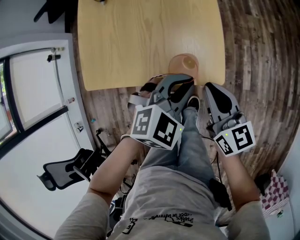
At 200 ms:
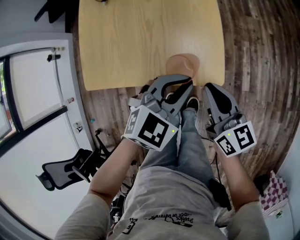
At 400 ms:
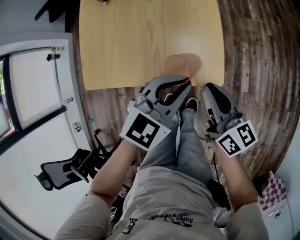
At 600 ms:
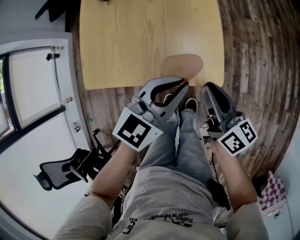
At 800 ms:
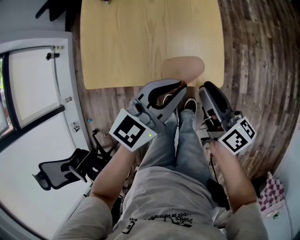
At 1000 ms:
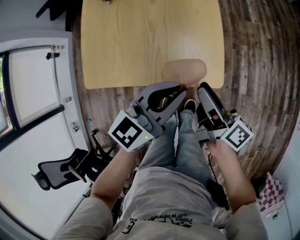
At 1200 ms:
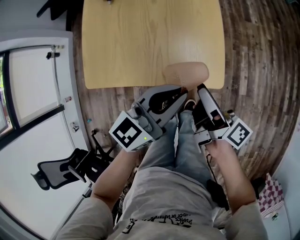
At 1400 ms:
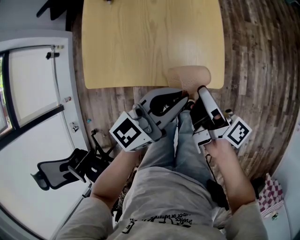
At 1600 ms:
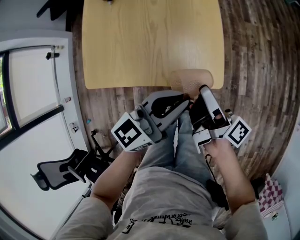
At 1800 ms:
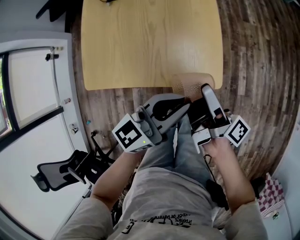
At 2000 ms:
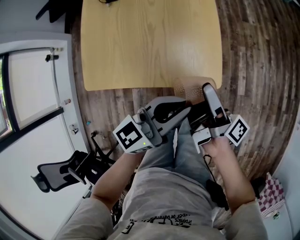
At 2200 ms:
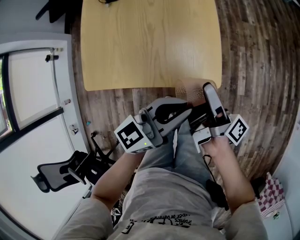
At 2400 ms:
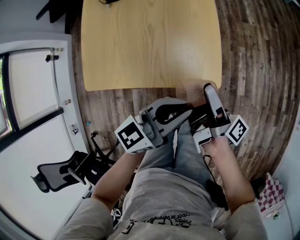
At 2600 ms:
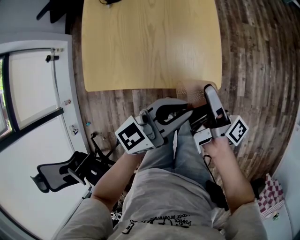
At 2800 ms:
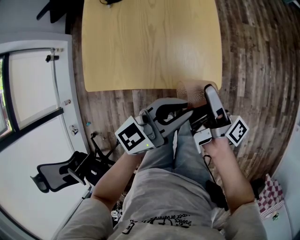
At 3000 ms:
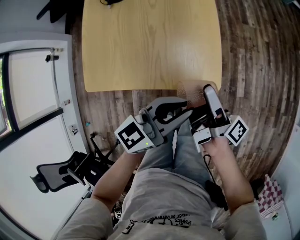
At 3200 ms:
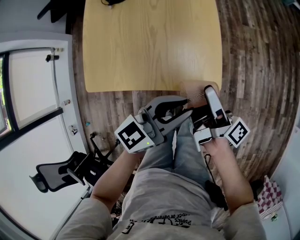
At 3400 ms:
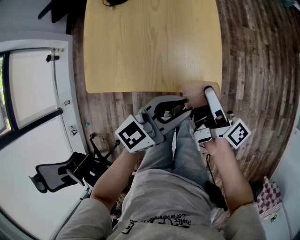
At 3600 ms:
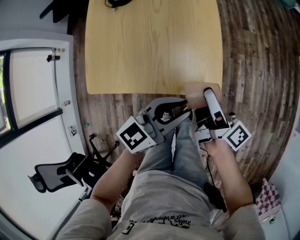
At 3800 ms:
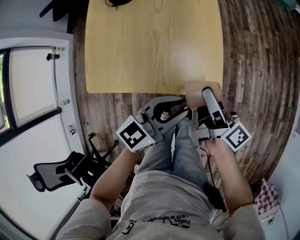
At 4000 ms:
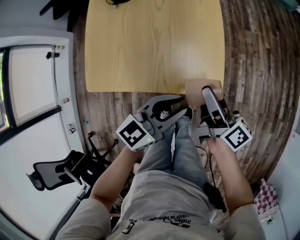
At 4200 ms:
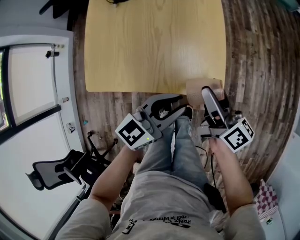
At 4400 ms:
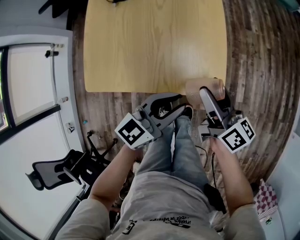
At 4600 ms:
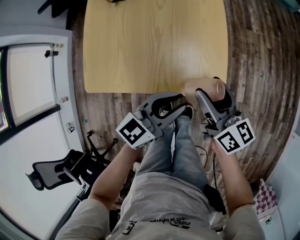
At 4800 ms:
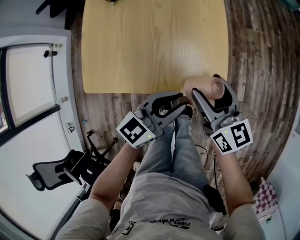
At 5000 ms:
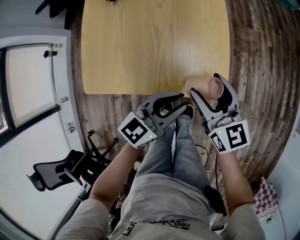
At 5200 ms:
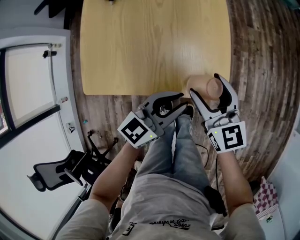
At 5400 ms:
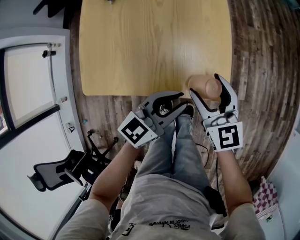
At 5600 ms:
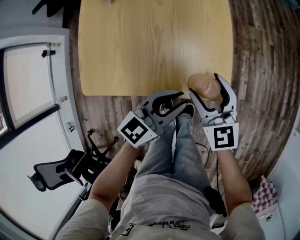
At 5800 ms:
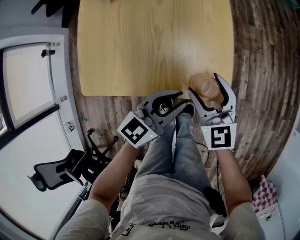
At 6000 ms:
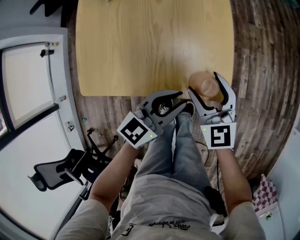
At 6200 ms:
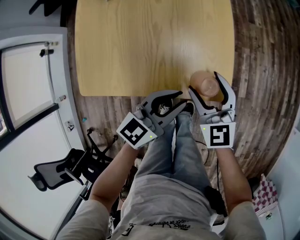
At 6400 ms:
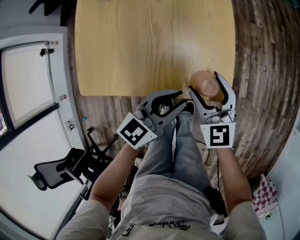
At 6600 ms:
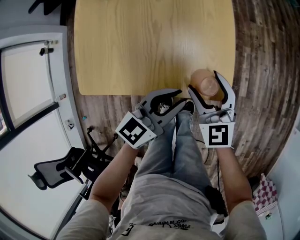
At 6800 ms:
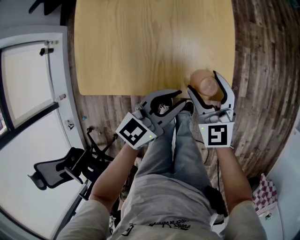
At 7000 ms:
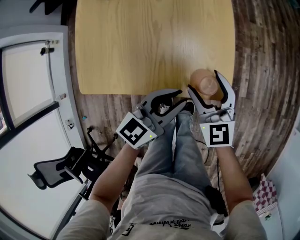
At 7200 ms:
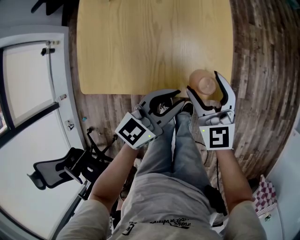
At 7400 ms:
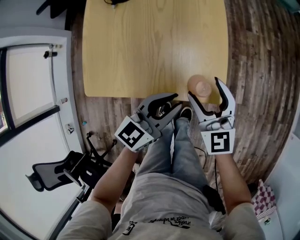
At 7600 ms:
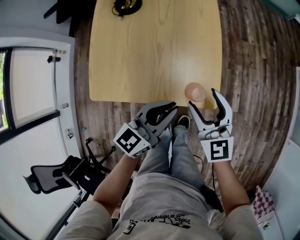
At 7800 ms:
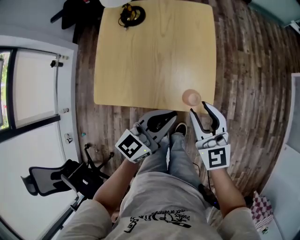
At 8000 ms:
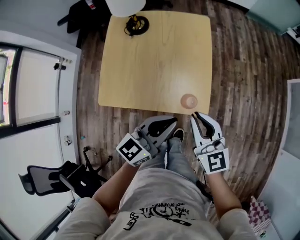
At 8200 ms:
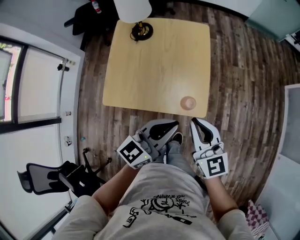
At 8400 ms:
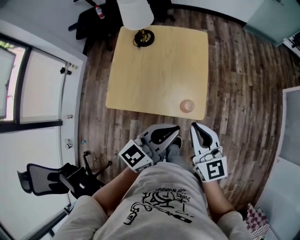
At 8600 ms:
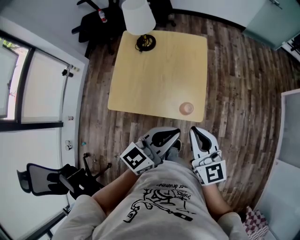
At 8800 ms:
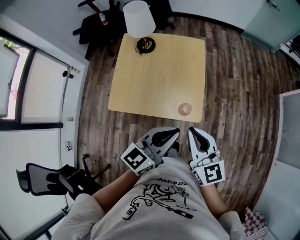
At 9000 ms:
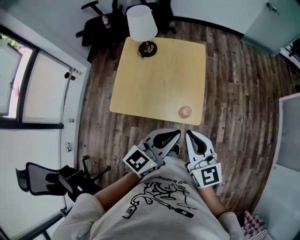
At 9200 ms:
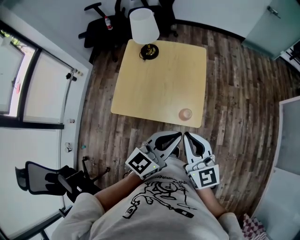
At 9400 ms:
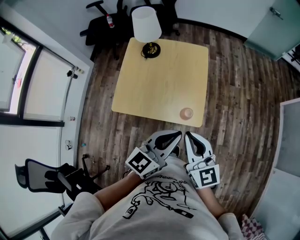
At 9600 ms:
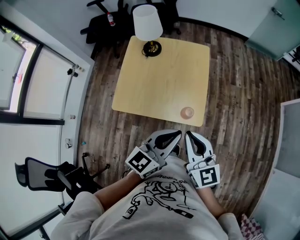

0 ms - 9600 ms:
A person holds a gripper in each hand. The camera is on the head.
0 ms - 1600 ms: The right gripper rotates around the line of its fingers by about 60 degrees, clockwise from behind, and opens its fingers. Meanwhile the left gripper is displaced upward by some 5 cm, and points its fingers some 40 degrees further upward.
1600 ms - 3200 ms: There are only small adjustments of the grippers.
3200 ms - 4800 ms: The right gripper twists some 60 degrees counterclockwise, seen from behind. Meanwhile the left gripper is displaced downward by approximately 5 cm.
4800 ms - 6400 ms: The right gripper goes approximately 5 cm downward, and swivels about 40 degrees.
6400 ms - 8000 ms: Both grippers move upward, some 15 cm. The right gripper closes up.
8000 ms - 9600 ms: The right gripper shifts about 15 cm upward and backward; the left gripper goes about 10 cm upward.

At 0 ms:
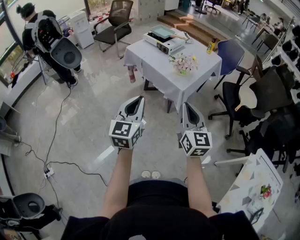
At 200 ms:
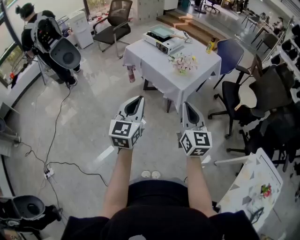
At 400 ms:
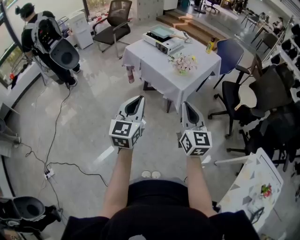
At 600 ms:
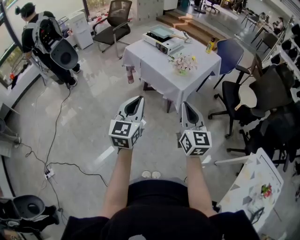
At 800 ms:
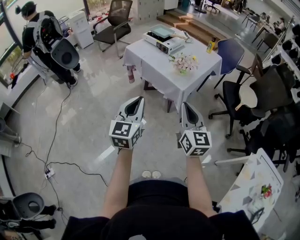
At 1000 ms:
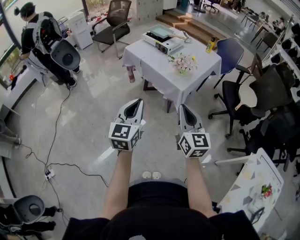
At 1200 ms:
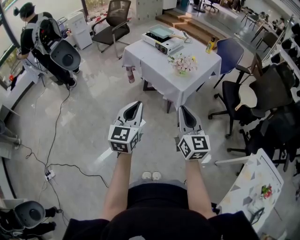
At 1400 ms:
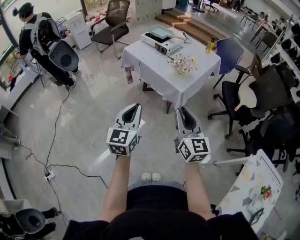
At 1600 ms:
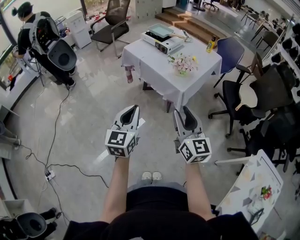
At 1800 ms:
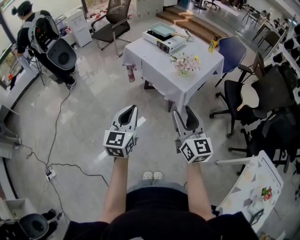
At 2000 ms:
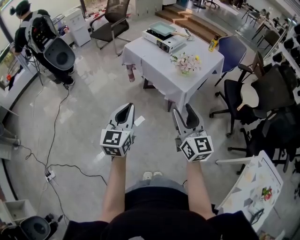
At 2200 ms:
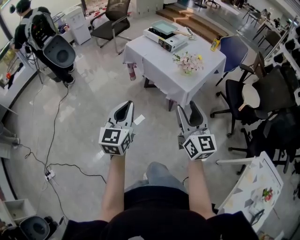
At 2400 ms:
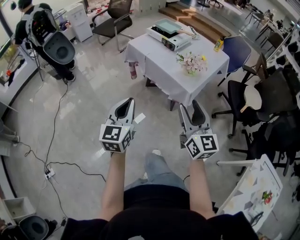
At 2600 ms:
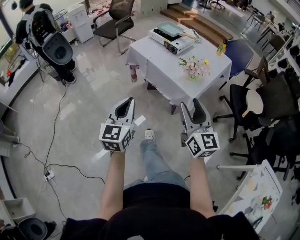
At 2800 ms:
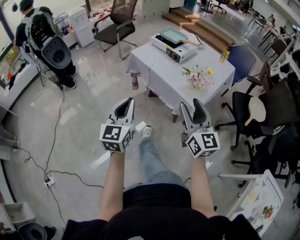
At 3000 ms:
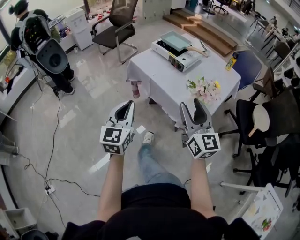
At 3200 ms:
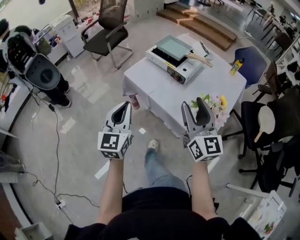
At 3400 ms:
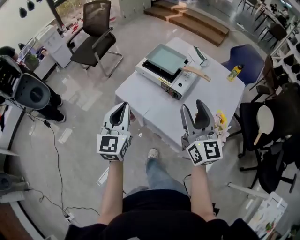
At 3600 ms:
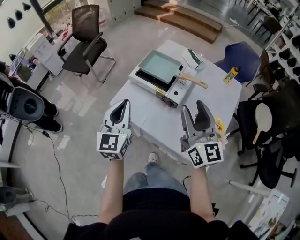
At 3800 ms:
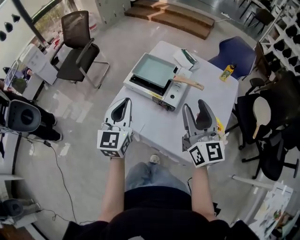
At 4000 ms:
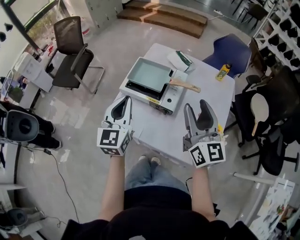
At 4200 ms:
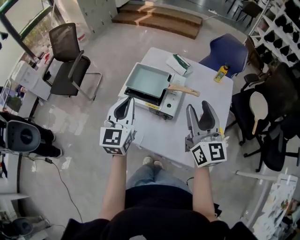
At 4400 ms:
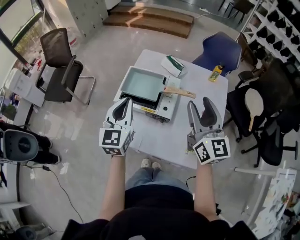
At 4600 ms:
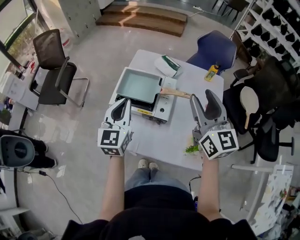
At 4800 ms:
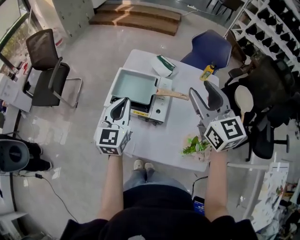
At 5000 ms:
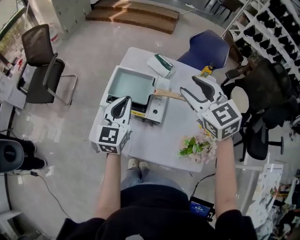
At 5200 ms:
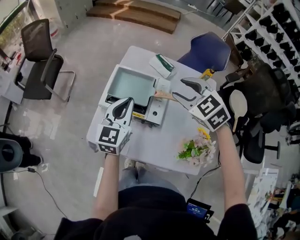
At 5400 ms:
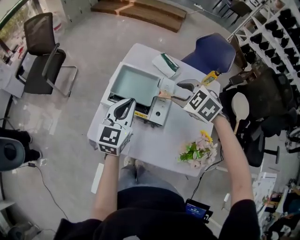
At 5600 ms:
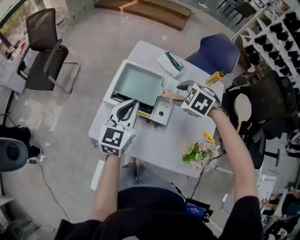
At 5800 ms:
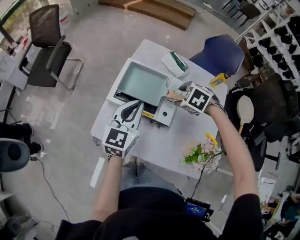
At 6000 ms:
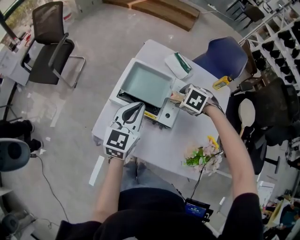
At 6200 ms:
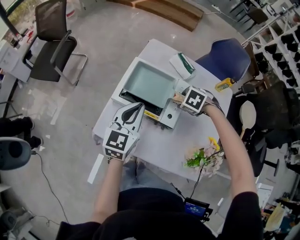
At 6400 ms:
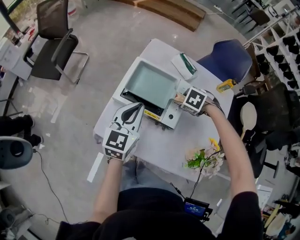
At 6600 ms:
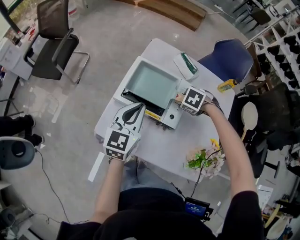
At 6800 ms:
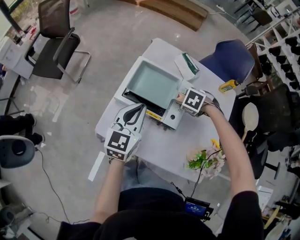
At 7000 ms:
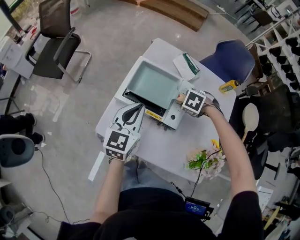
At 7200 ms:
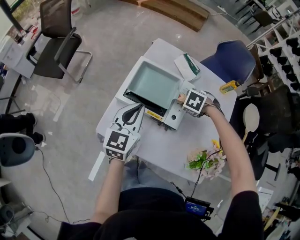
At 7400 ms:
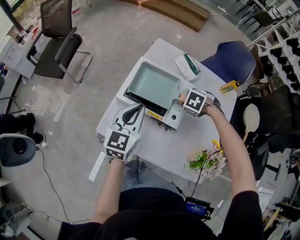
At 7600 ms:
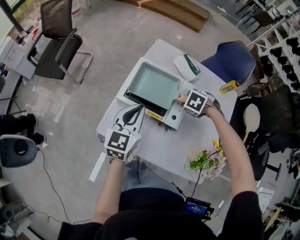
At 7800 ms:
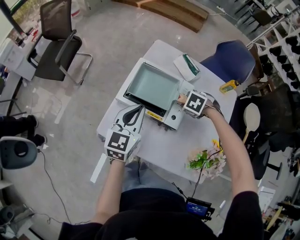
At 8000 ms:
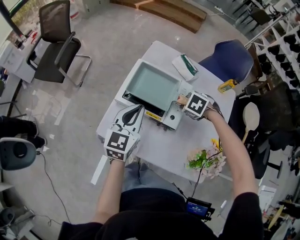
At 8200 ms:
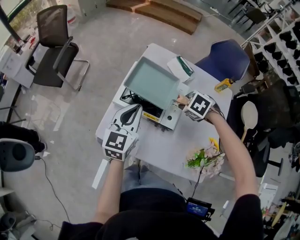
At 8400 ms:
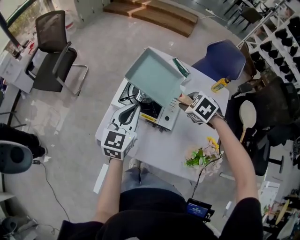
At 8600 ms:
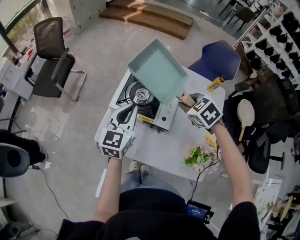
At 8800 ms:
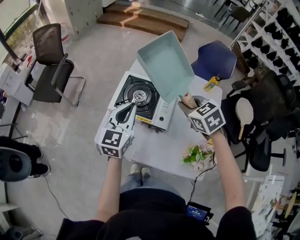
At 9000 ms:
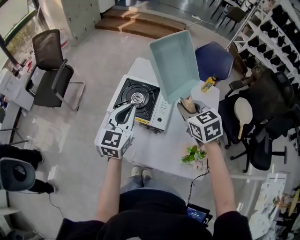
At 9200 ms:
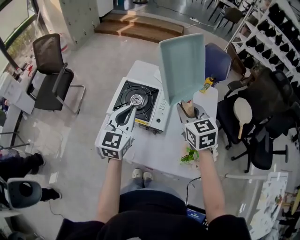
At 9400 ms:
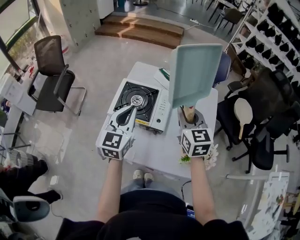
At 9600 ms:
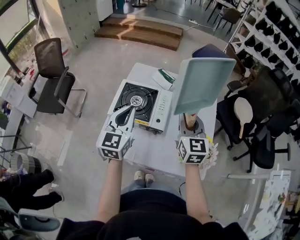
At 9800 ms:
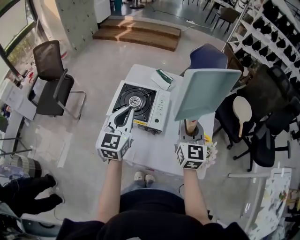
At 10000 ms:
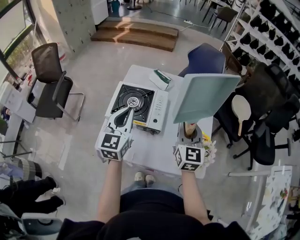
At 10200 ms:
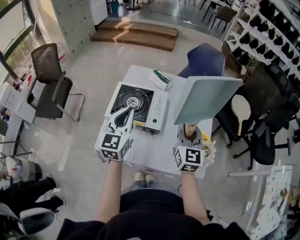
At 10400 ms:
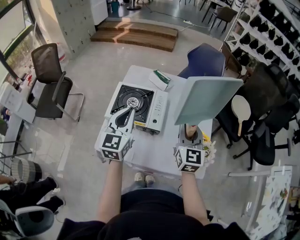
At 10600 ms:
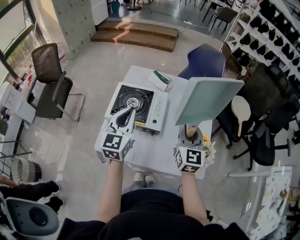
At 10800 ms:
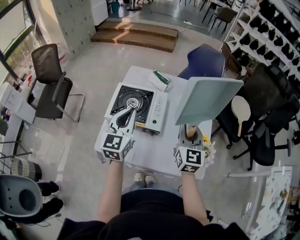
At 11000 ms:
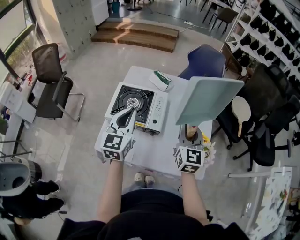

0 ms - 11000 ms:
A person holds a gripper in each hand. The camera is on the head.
0 ms - 1600 ms: The right gripper opens up.
1600 ms - 3200 ms: Both grippers are carried forward, some 40 cm.
3200 ms - 4800 ms: The right gripper moves some 35 cm, and changes its angle by roughly 30 degrees, while the left gripper ends up some 40 cm from where it was, and changes its angle by approximately 30 degrees.
4800 ms - 6200 ms: The right gripper is displaced downward by some 30 cm, and tips its fingers downward by approximately 70 degrees; the left gripper moves downward, approximately 5 cm.
6200 ms - 7800 ms: The right gripper closes up.
7800 ms - 9400 ms: The left gripper shifts approximately 10 cm upward. Meanwhile the right gripper travels upward by roughly 25 cm, and tilts its fingers about 70 degrees upward.
9400 ms - 11000 ms: The right gripper goes roughly 5 cm to the right.

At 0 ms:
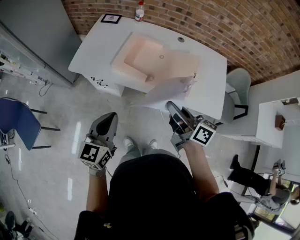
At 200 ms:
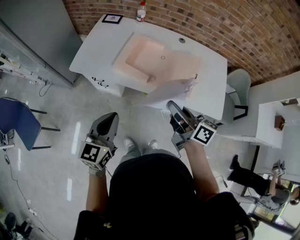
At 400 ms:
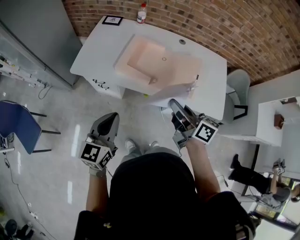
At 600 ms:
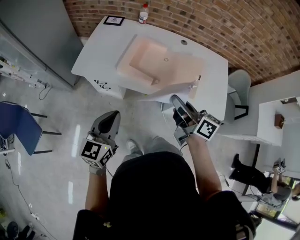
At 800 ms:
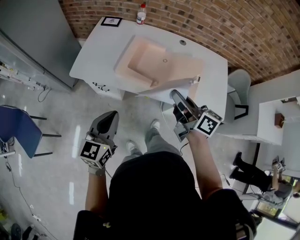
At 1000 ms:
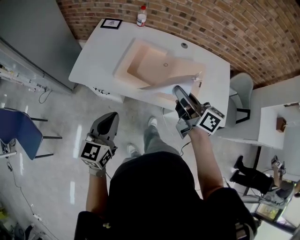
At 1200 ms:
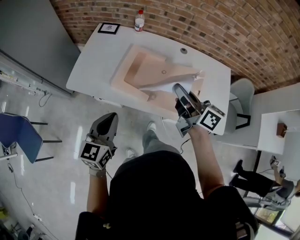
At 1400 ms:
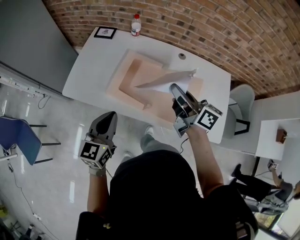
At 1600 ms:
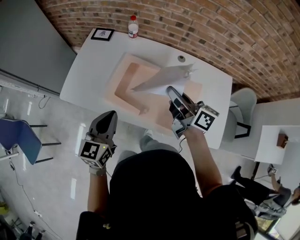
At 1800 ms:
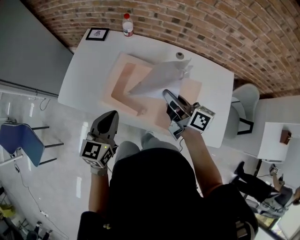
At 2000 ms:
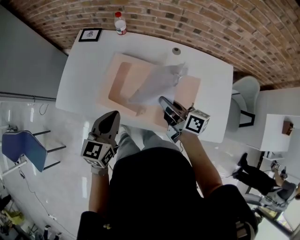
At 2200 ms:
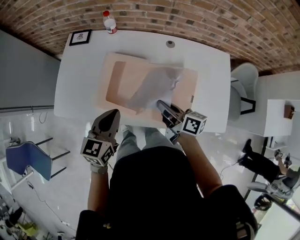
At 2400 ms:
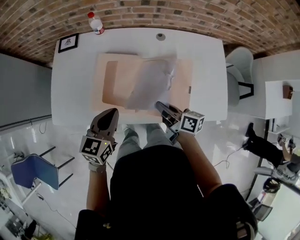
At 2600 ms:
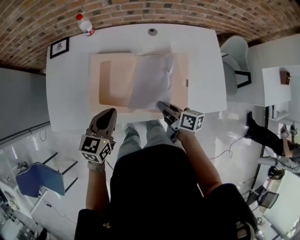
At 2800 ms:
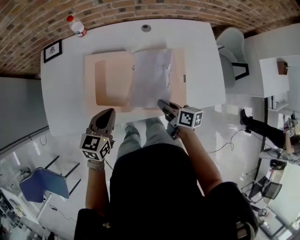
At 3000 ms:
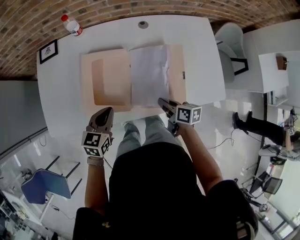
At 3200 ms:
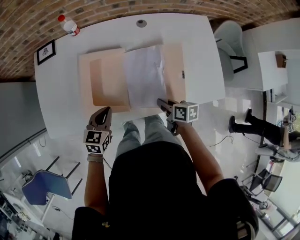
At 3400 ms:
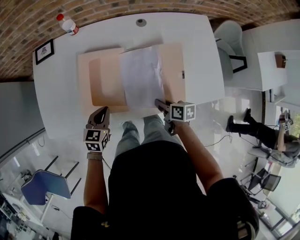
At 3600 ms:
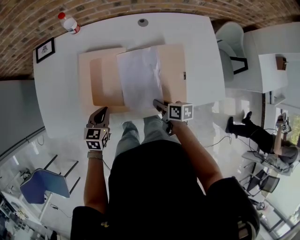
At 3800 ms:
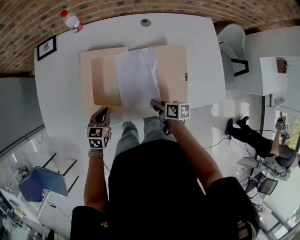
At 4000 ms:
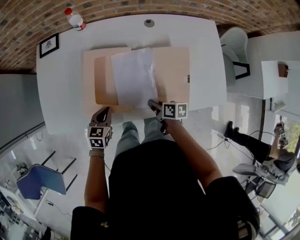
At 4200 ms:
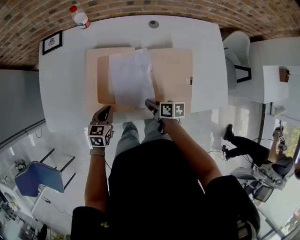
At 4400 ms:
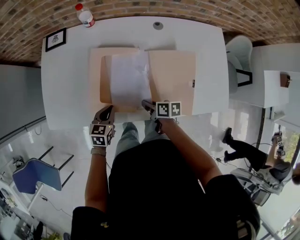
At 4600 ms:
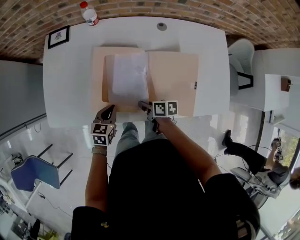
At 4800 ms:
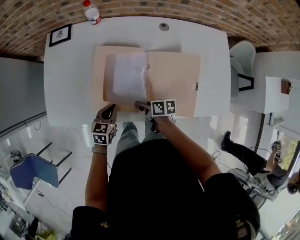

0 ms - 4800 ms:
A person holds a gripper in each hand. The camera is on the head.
0 ms - 1600 ms: The two grippers go about 25 cm forward.
1600 ms - 3200 ms: The right gripper shifts approximately 30 cm downward, and angles its fingers downward, by about 40 degrees; the left gripper shifts roughly 20 cm downward and forward, and changes its angle by about 40 degrees.
3200 ms - 4800 ms: The right gripper moves to the left, roughly 15 cm; the left gripper shifts some 5 cm downward.
